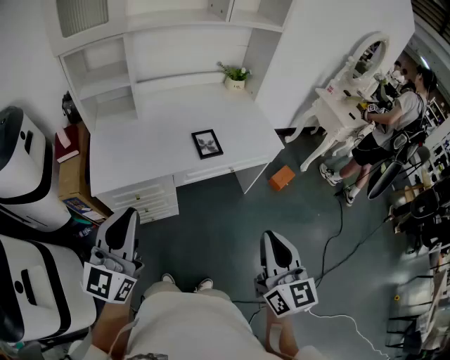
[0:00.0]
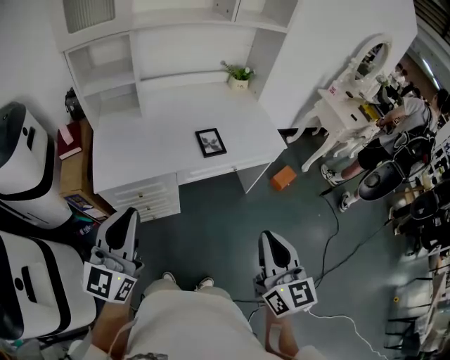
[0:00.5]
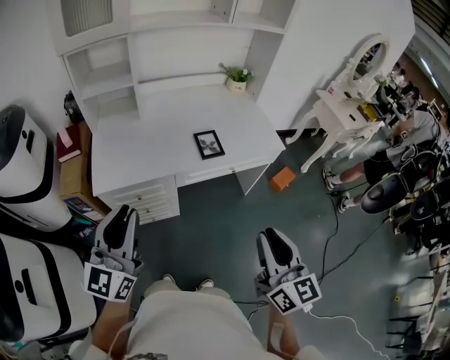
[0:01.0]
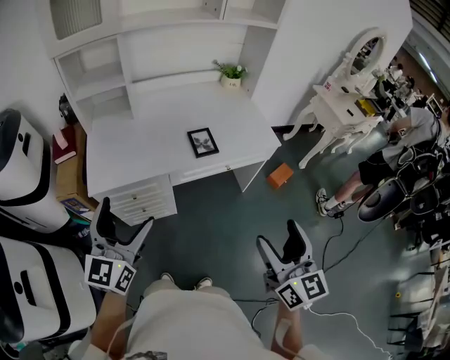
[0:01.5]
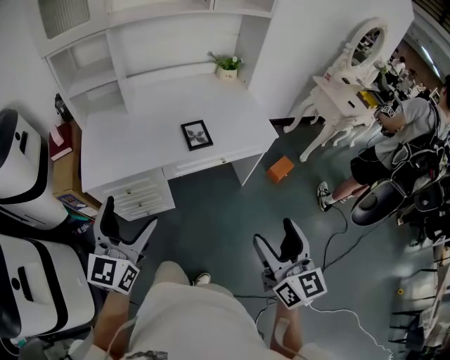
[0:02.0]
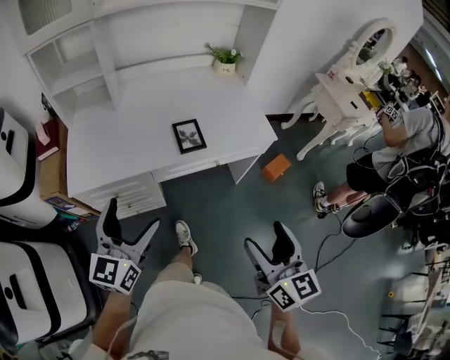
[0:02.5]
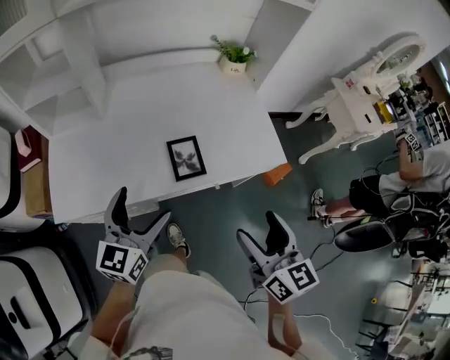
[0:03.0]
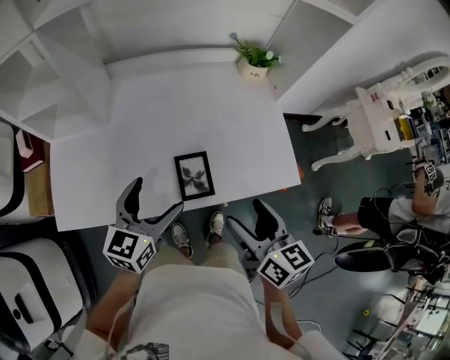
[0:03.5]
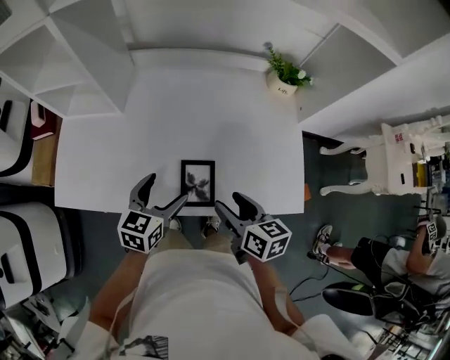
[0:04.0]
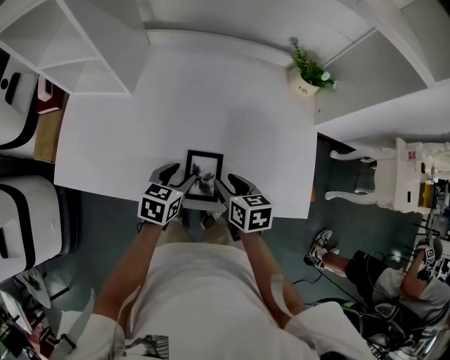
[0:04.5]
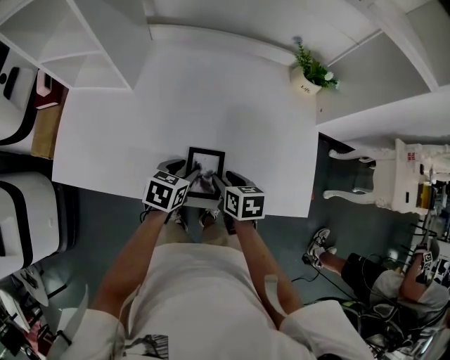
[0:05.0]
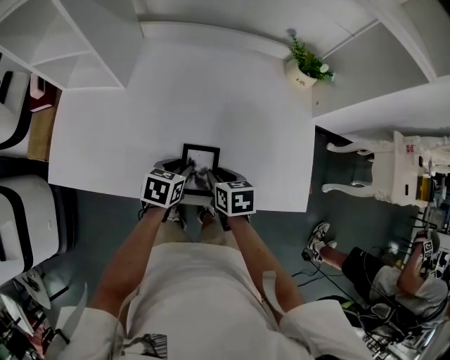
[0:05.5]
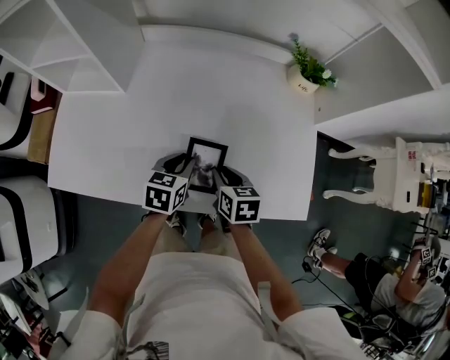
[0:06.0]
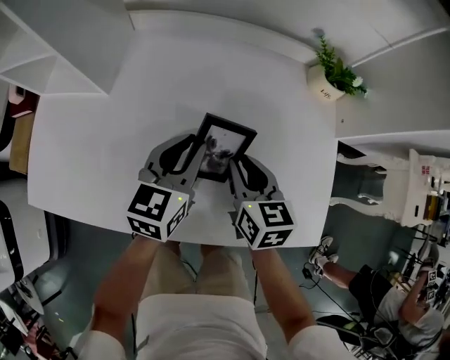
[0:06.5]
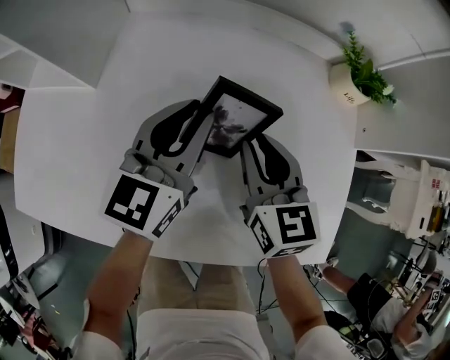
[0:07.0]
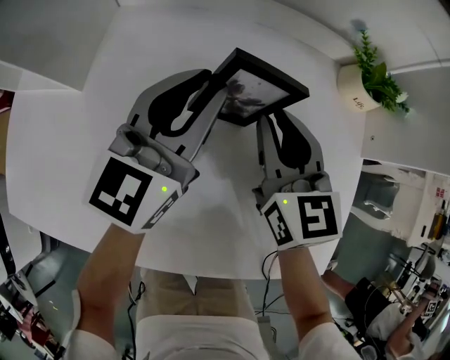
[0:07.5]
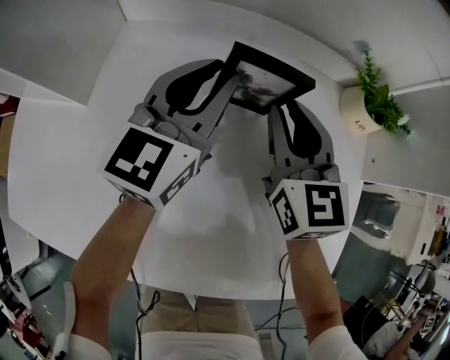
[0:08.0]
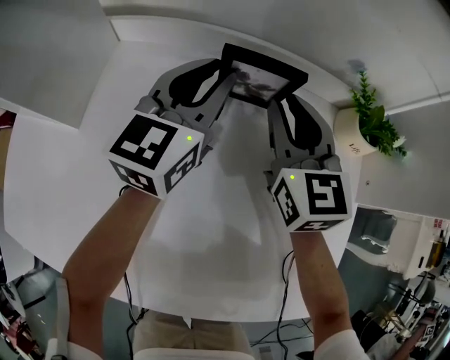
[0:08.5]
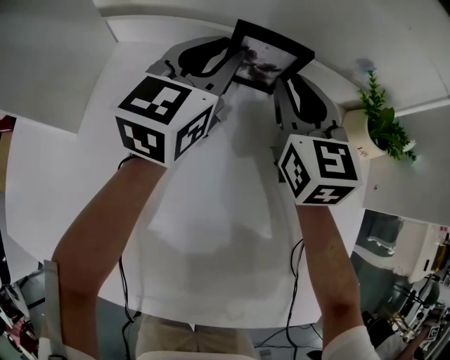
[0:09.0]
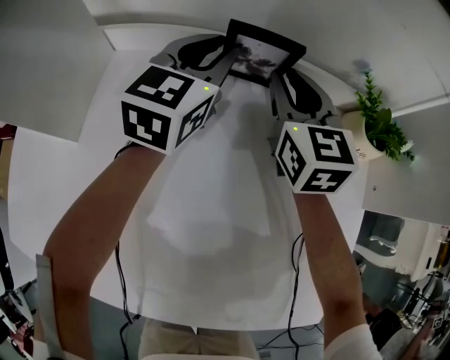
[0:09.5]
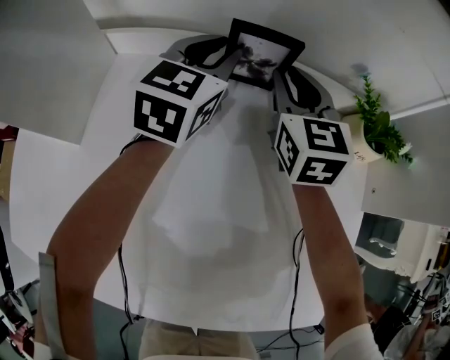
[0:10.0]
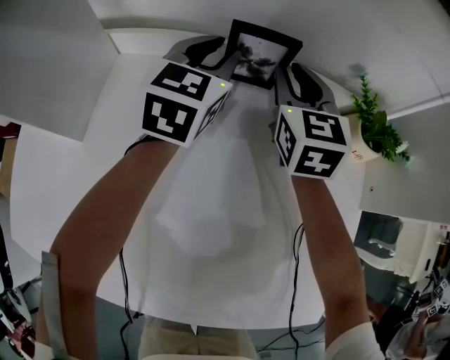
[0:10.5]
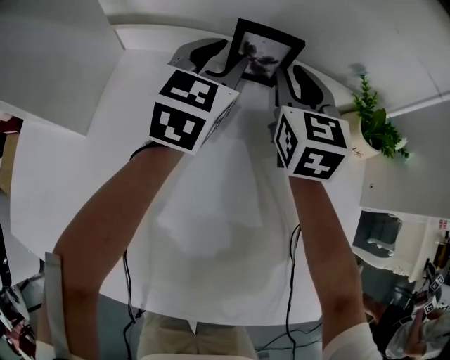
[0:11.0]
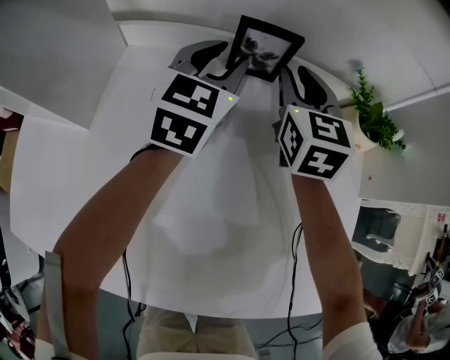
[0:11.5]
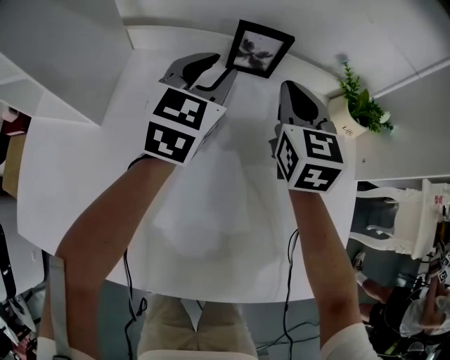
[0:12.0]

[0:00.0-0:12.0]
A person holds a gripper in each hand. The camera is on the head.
0:00.0 to 0:02.0: The right gripper goes roughly 5 cm to the right, and opens up; the left gripper goes about 5 cm downward, and opens its fingers.
0:02.0 to 0:04.0: The pair of grippers is taken forward, roughly 50 cm. The left gripper moves downward, approximately 20 cm, and rotates approximately 30 degrees; the right gripper changes its angle by about 50 degrees.
0:04.0 to 0:06.0: Both grippers move downward and forward, some 10 cm. The left gripper closes up, while the right gripper closes up.
0:06.0 to 0:08.0: The grippers both shift forward by about 25 cm. The right gripper points its fingers approximately 30 degrees further upward, while the left gripper tilts its fingers some 40 degrees upward.
0:08.0 to 0:10.0: Both grippers move forward, roughly 15 cm.
0:10.0 to 0:12.0: Both grippers move backward, some 10 cm.

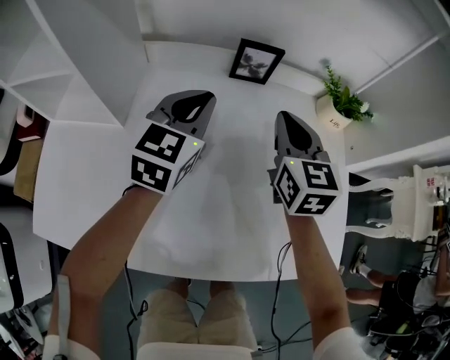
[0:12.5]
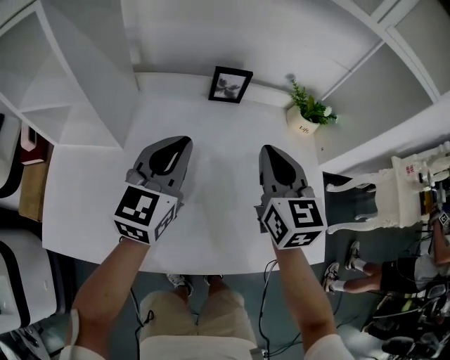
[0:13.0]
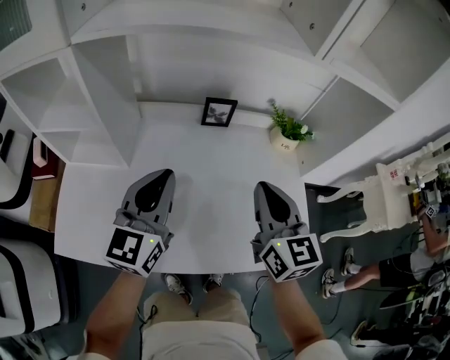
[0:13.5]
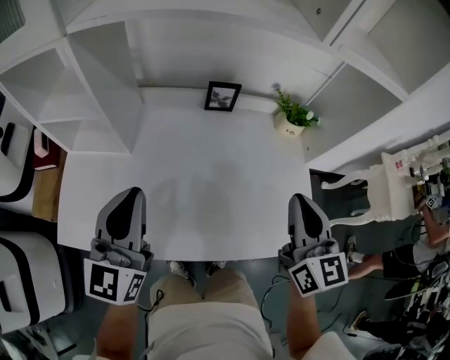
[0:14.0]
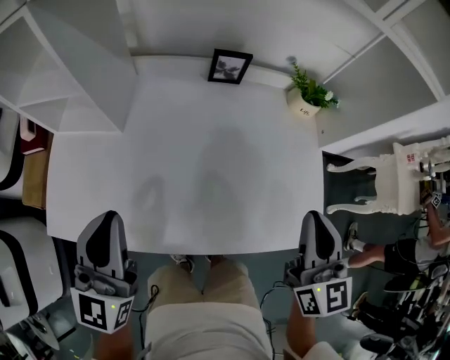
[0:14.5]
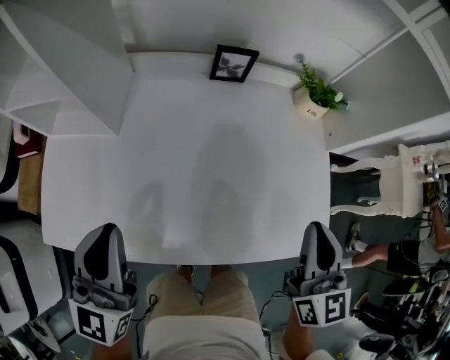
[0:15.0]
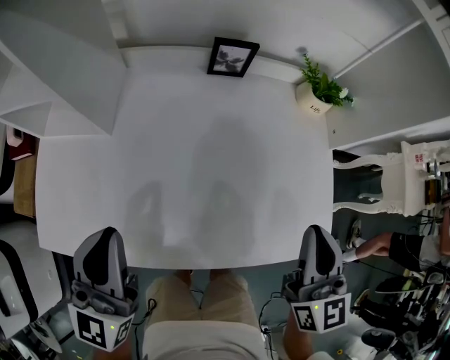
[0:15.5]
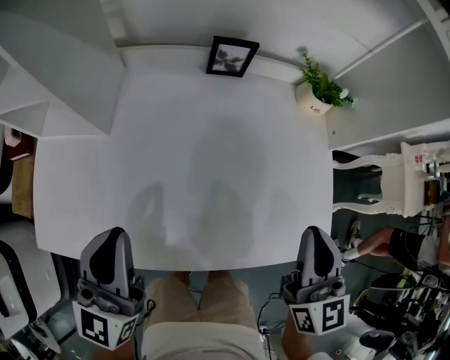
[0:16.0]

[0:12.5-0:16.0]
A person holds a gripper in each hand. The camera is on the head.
0:12.5 to 0:14.5: The right gripper shifts about 30 cm backward, upward and to the right. The left gripper moves backward and upward, about 30 cm, and turns by approximately 20 degrees.
0:14.5 to 0:16.0: The right gripper ends up roughly 5 cm from where it was; the left gripper changes place by approximately 5 cm.

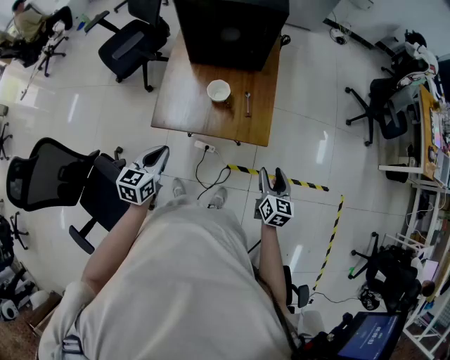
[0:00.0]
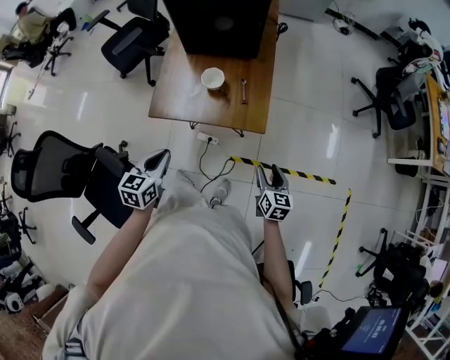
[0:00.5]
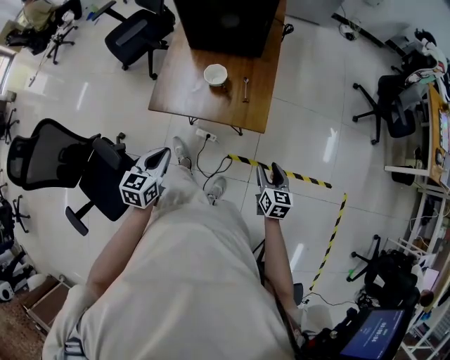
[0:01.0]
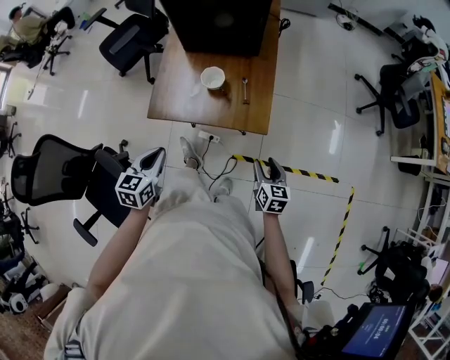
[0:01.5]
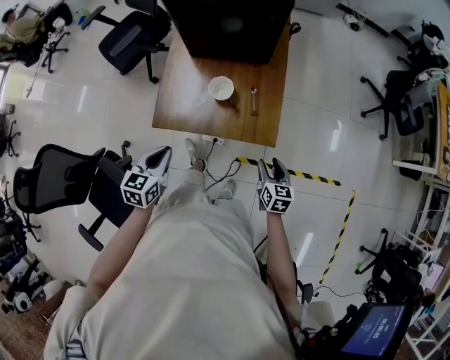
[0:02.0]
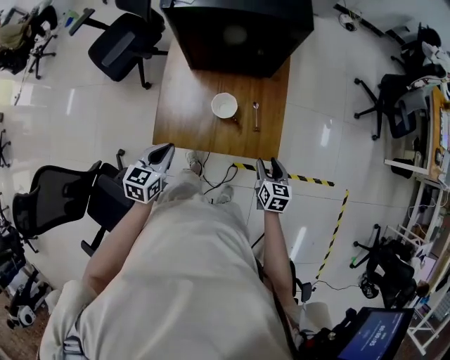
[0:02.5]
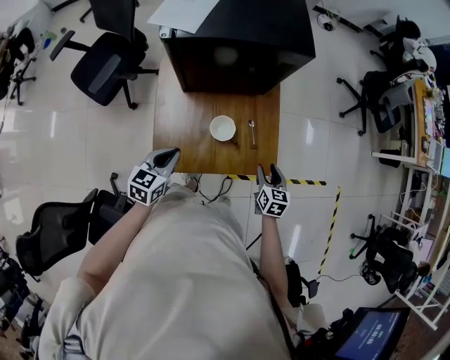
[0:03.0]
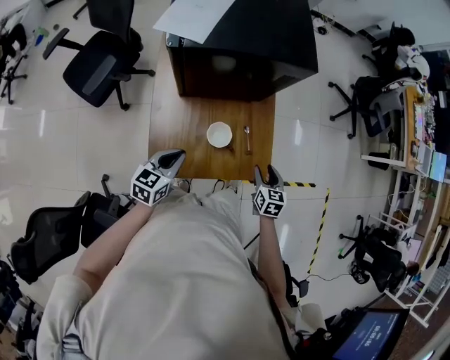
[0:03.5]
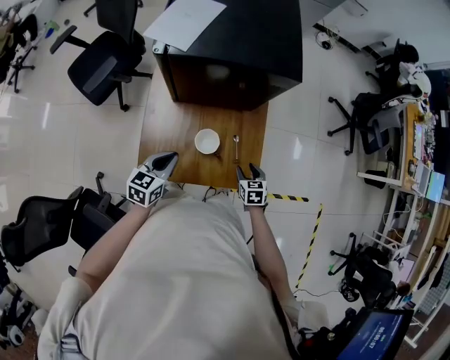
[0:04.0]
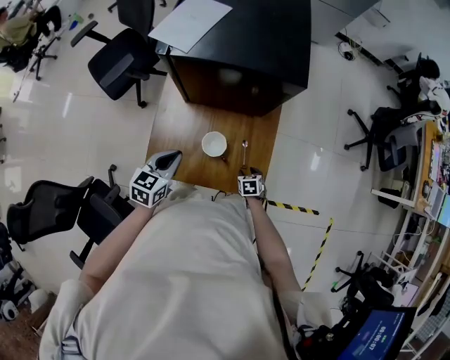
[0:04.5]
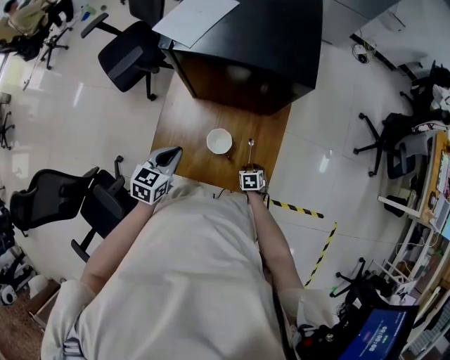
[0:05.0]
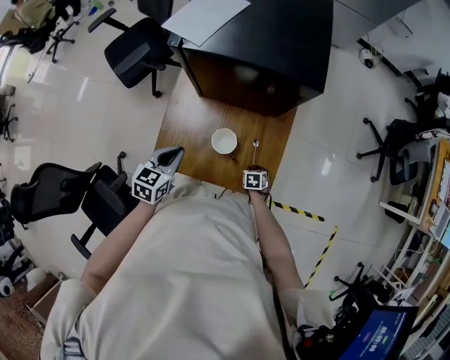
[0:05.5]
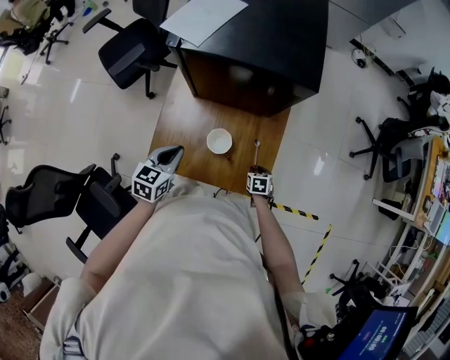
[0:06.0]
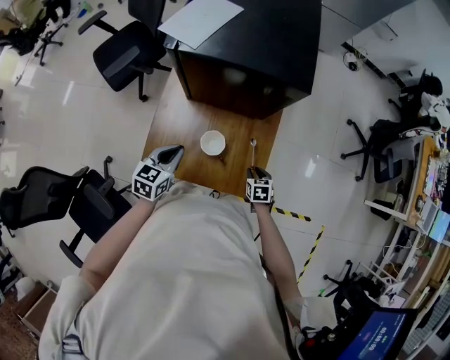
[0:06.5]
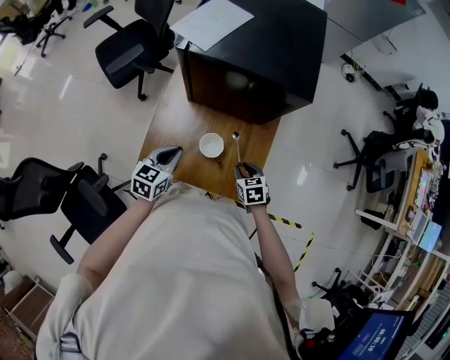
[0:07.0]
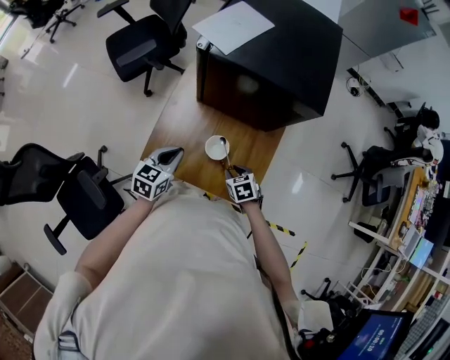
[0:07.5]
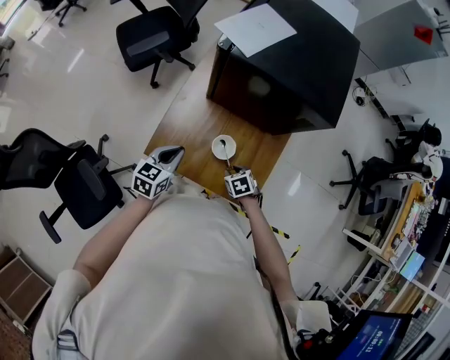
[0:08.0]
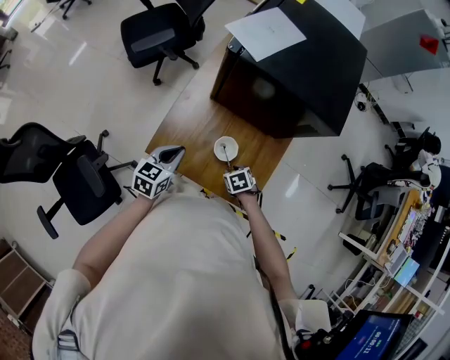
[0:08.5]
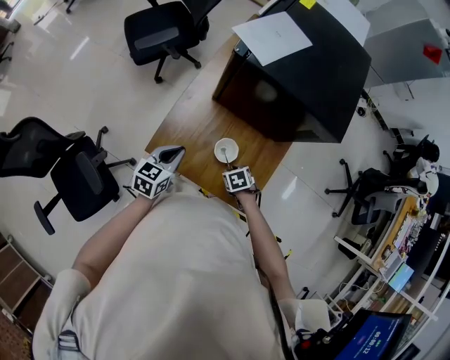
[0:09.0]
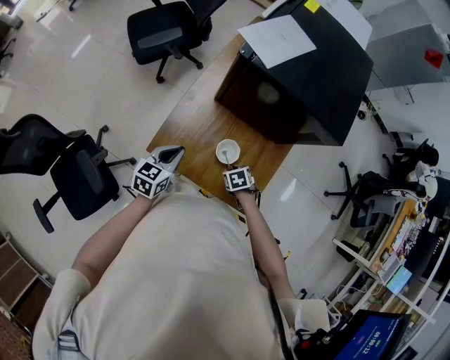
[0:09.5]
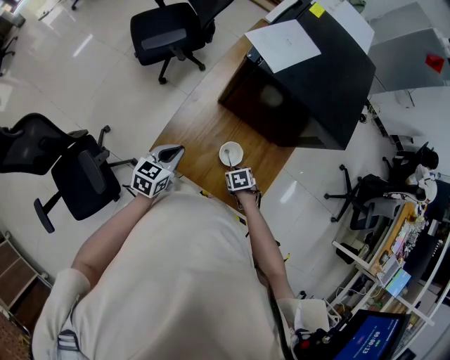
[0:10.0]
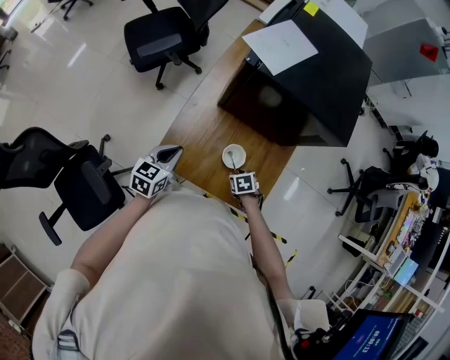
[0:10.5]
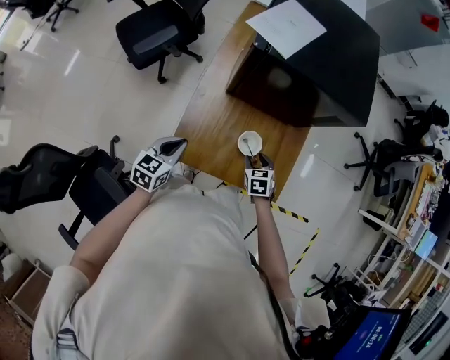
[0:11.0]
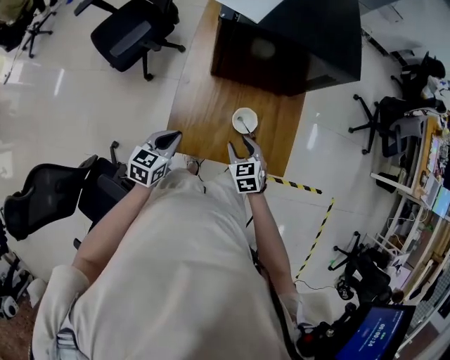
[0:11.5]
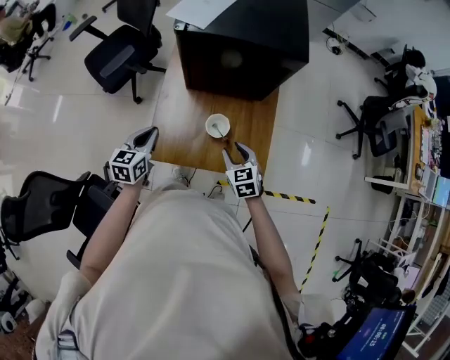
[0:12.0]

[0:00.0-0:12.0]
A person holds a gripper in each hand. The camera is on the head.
0:00.0 to 0:02.0: The left gripper reaches approximately 5 cm backward, then returns, while the right gripper heads downward and forward, covering approximately 10 cm.
0:02.0 to 0:04.0: The left gripper moves forward, some 20 cm, while the right gripper shifts some 20 cm forward and to the left, and swivels about 20 degrees.
0:04.0 to 0:06.0: The right gripper goes about 10 cm downward.
0:06.0 to 0:08.0: The right gripper heads to the left and upward, covering roughly 15 cm, and turns by some 30 degrees.
0:08.0 to 0:10.0: There are only small adjustments of the grippers.
0:10.0 to 0:12.0: The right gripper moves upward, some 15 cm, and tilts its fingers approximately 40 degrees upward.
